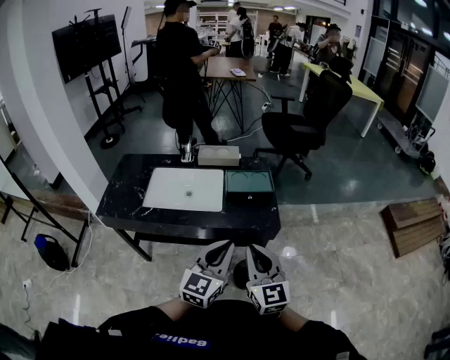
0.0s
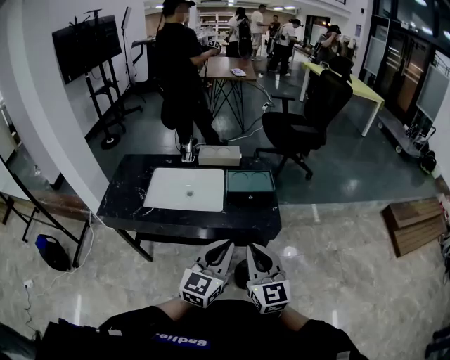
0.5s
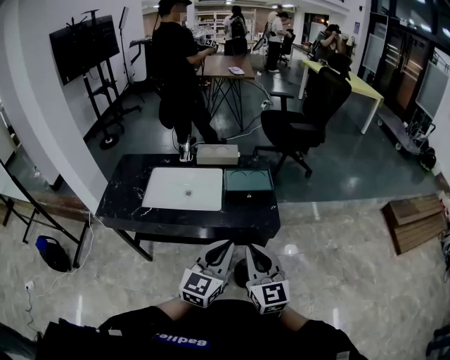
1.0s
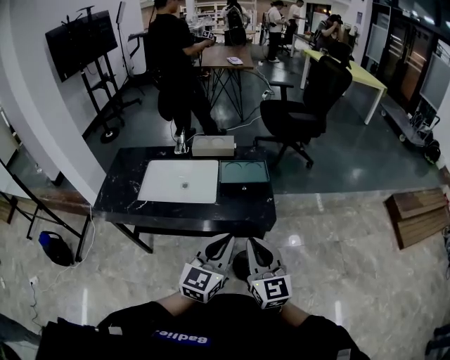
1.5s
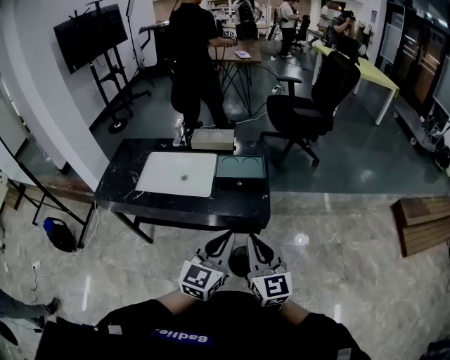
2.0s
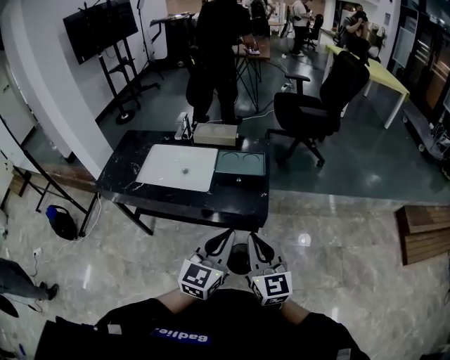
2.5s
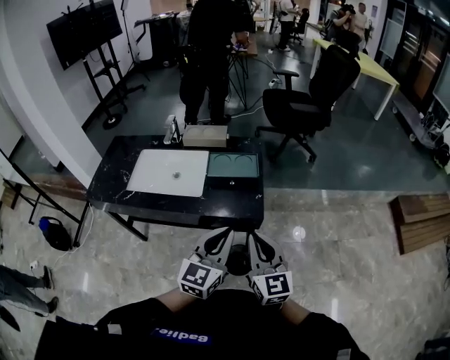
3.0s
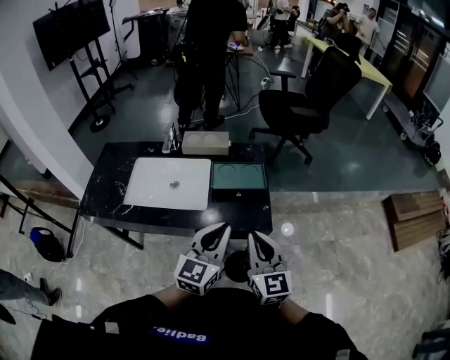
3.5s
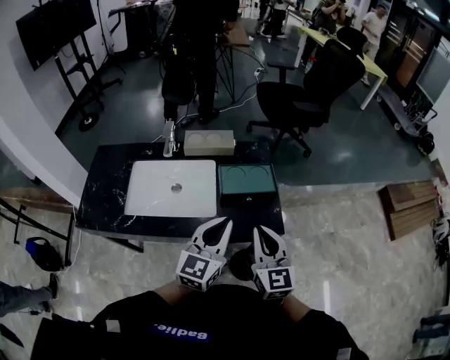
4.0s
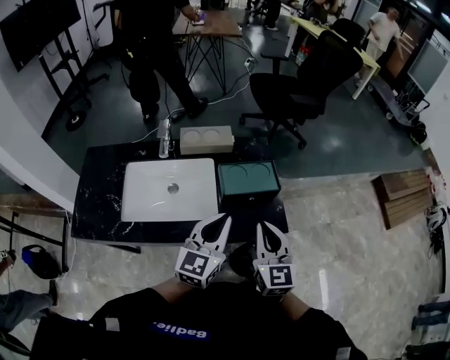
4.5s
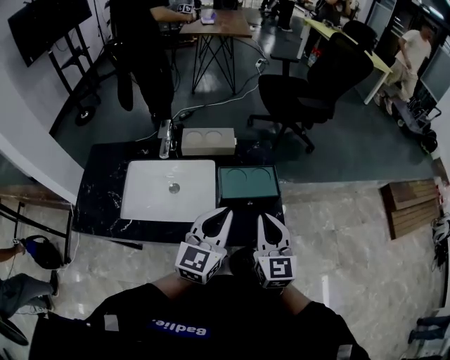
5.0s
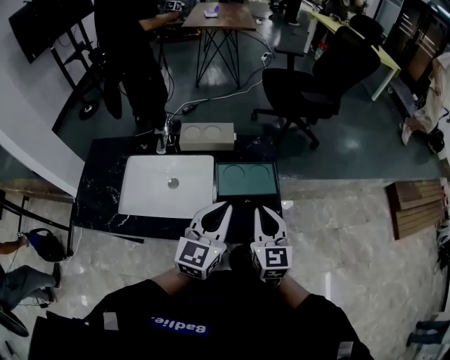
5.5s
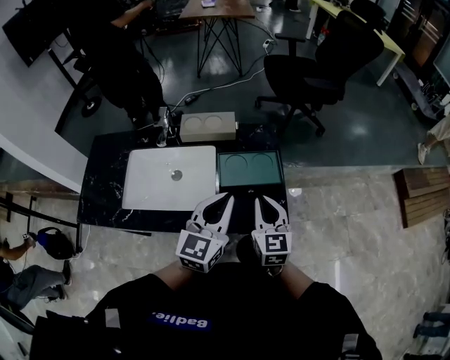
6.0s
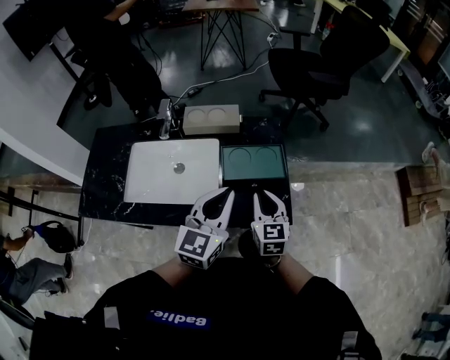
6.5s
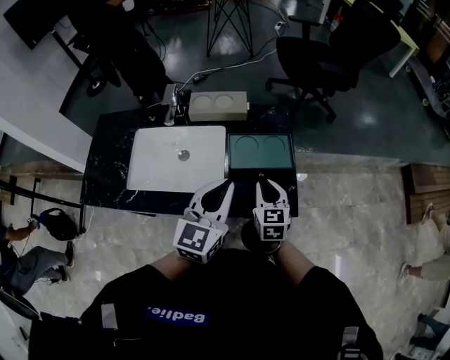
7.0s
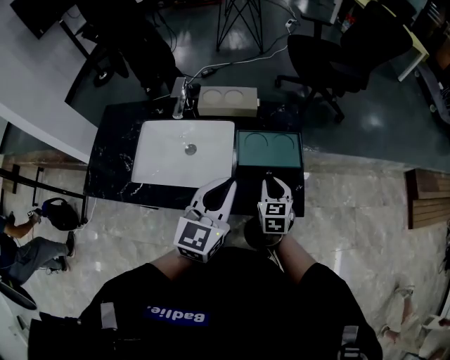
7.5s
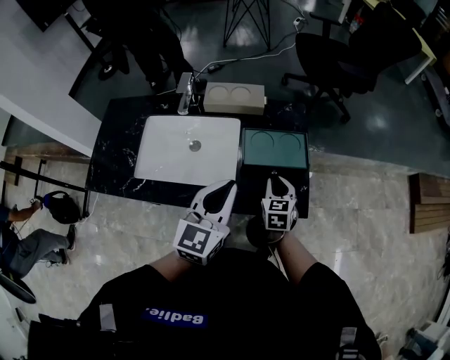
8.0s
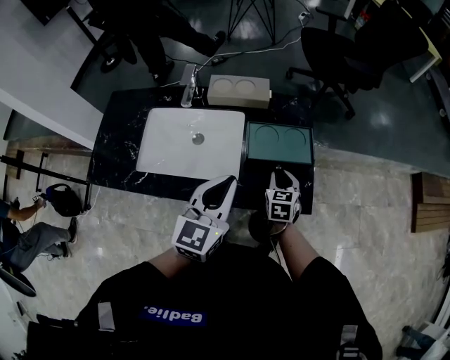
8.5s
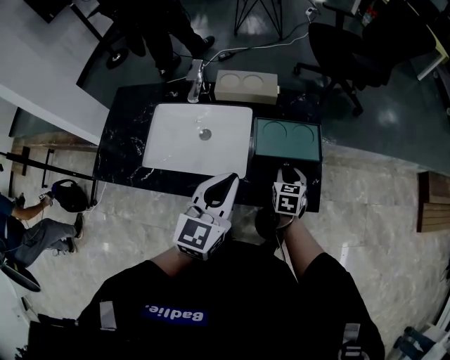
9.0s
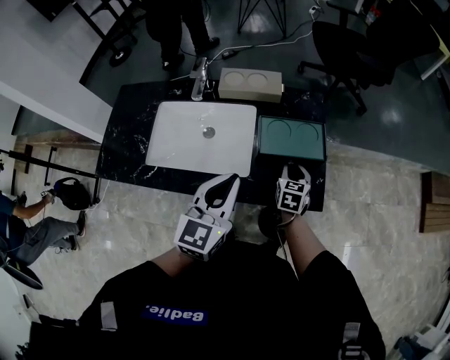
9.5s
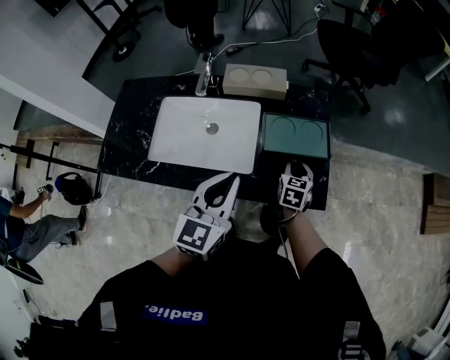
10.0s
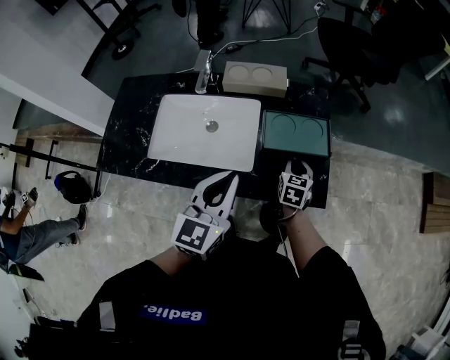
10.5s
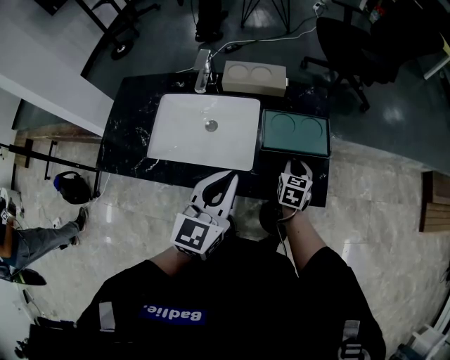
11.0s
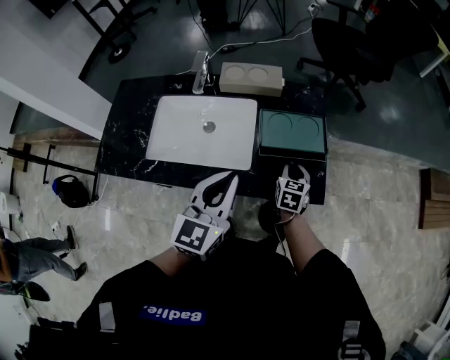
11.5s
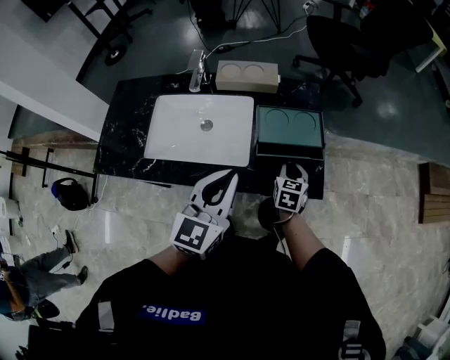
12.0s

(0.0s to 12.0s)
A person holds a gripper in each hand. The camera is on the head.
0.0s - 2.0s: Both grippers move to the right, some 10 cm.
2.0s - 4.0s: The grippers both shift forward and to the left by approximately 20 cm.
4.0s - 6.0s: The left gripper shifts roughly 10 cm forward; the right gripper shifts some 15 cm forward and downward.
6.0s - 8.0s: The right gripper travels downward by some 15 cm, and changes its angle by approximately 20 degrees; the left gripper moves to the left, approximately 5 cm.
8.0s - 12.0s: The grippers make only small movements.

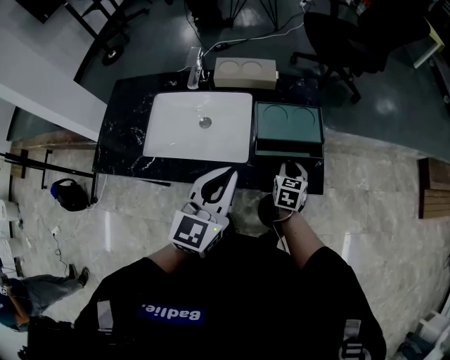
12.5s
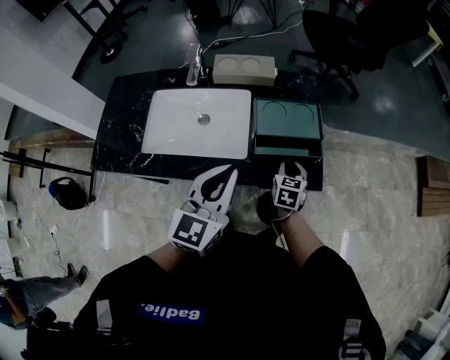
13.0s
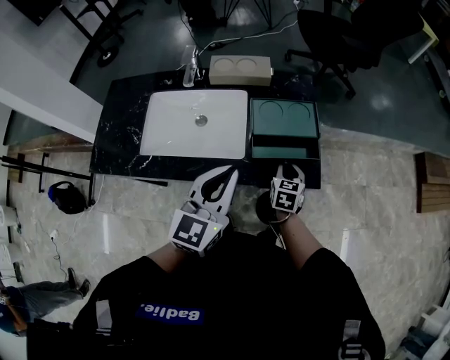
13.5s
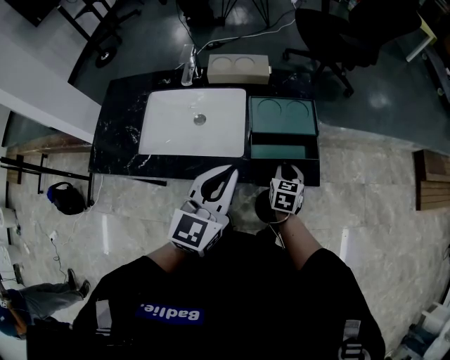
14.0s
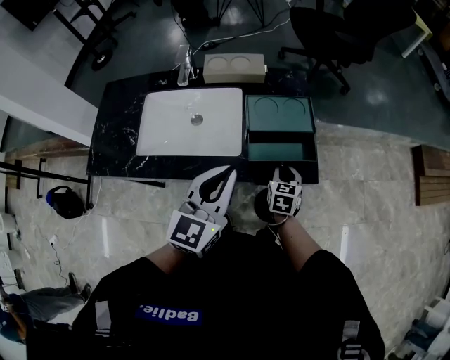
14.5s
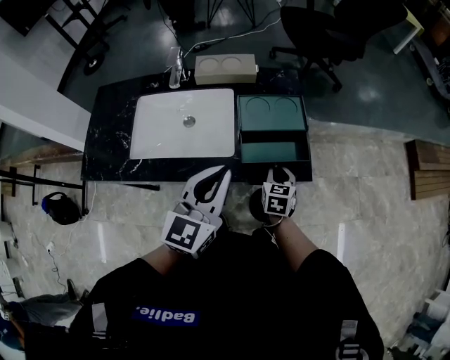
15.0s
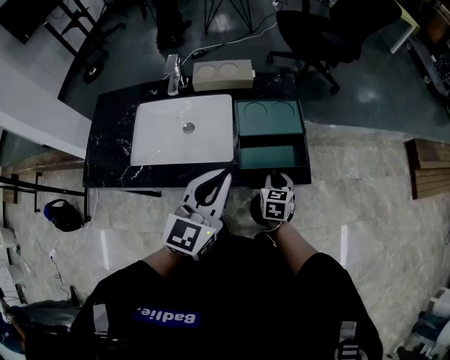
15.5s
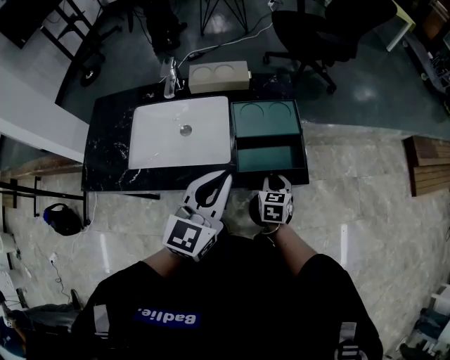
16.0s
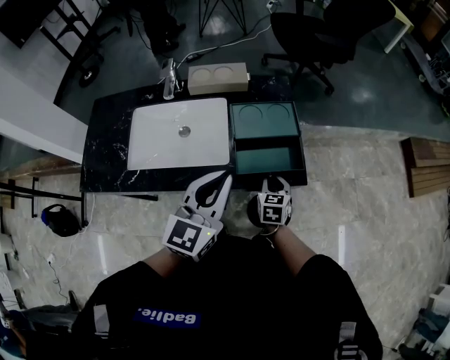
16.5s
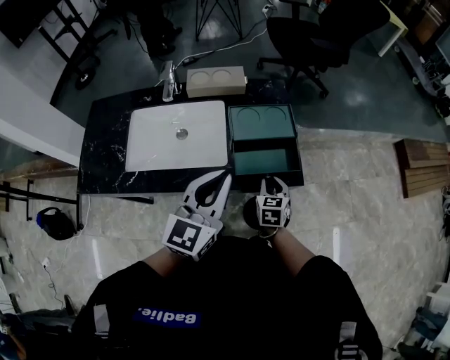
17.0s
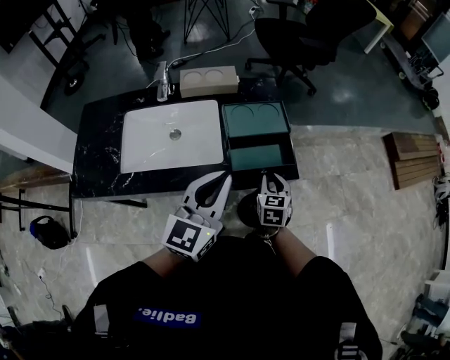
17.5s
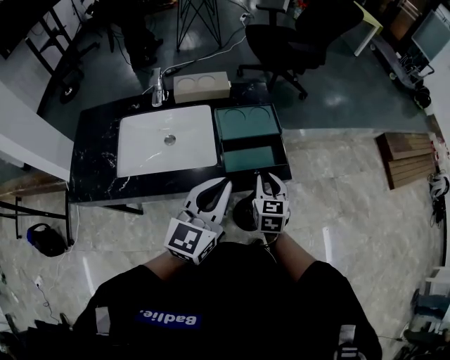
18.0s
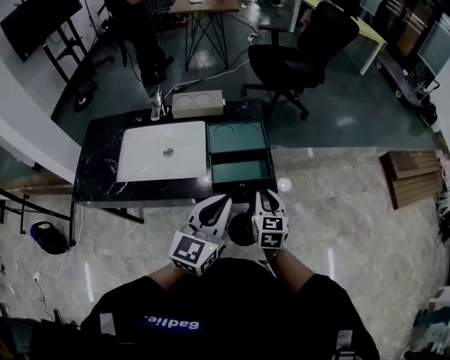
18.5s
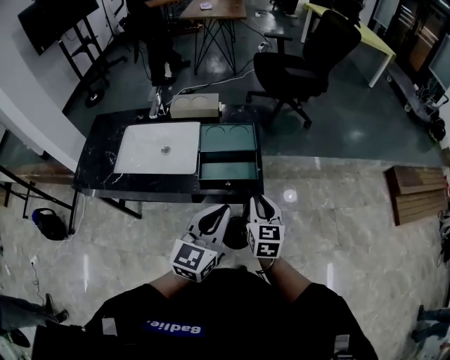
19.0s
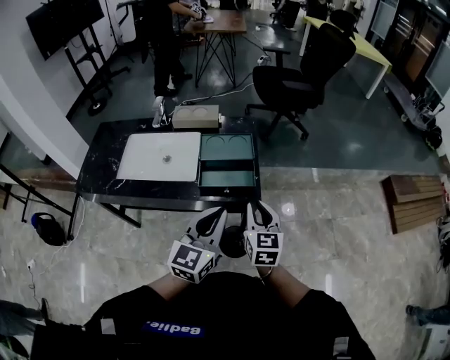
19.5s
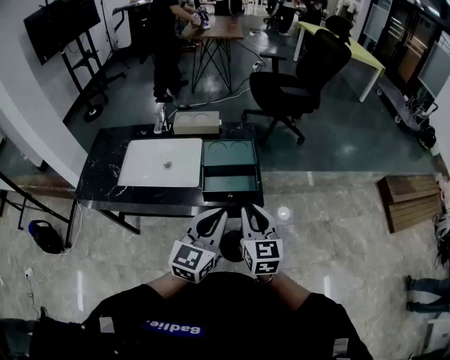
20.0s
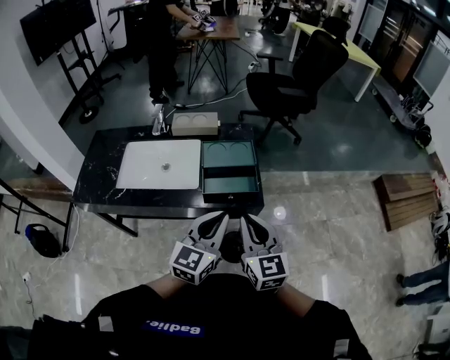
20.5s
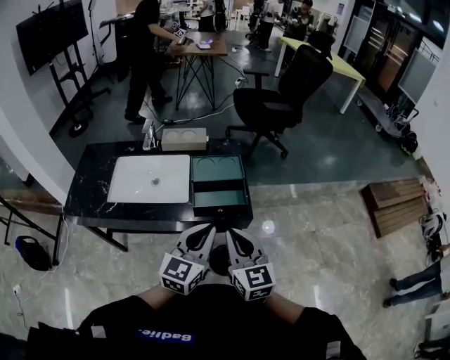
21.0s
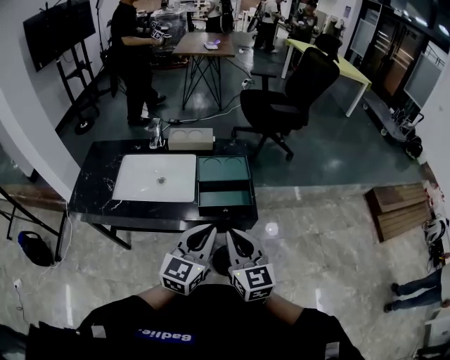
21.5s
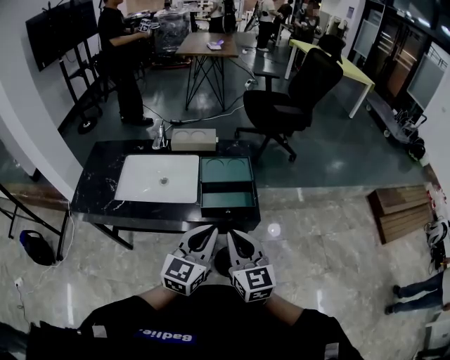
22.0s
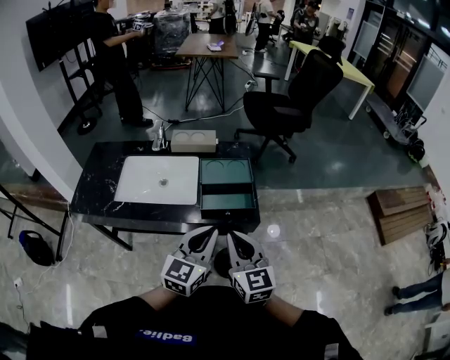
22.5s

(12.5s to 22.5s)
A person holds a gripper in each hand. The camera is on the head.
12.5s - 14.5s: The grippers stay close to where they were, moving slightly.
14.5s - 16.5s: The grippers make only small movements.
16.5s - 18.5s: The right gripper goes some 15 cm upward and to the right. Meanwhile the left gripper moves to the right, about 10 cm.
18.5s - 20.5s: The left gripper changes place by roughly 5 cm. Meanwhile the right gripper moves upward and backward, some 20 cm, and swivels about 20 degrees.
20.5s - 22.5s: The grippers stay close to where they were, moving slightly.

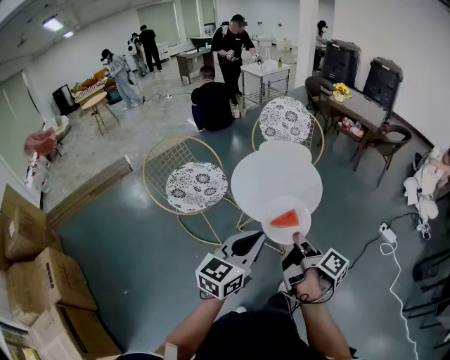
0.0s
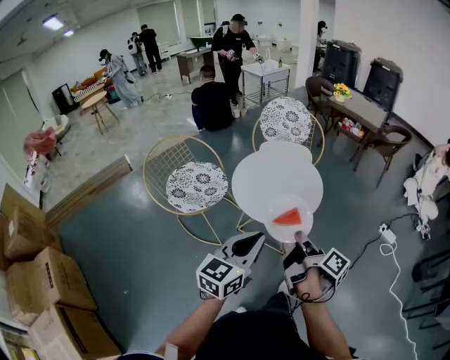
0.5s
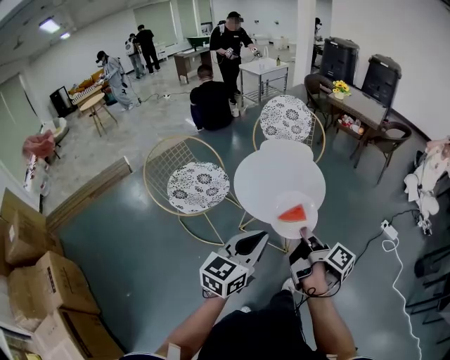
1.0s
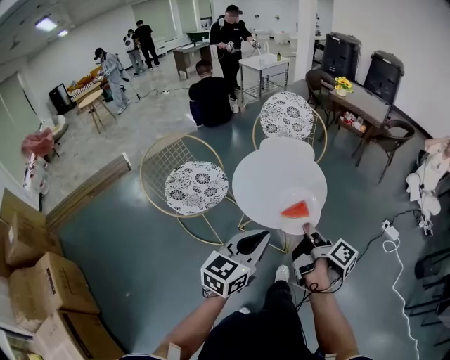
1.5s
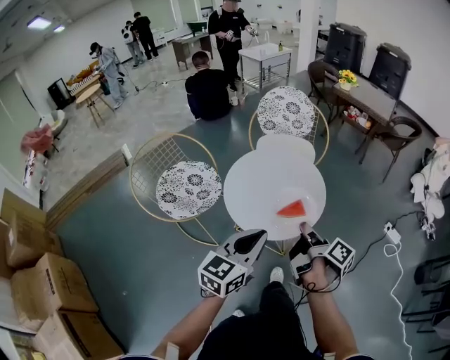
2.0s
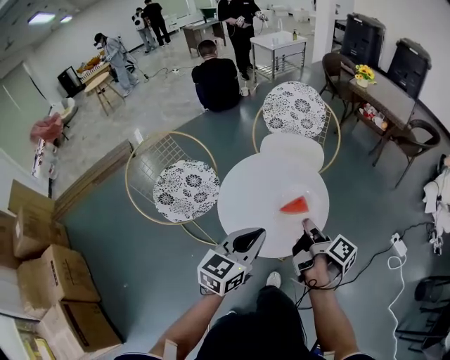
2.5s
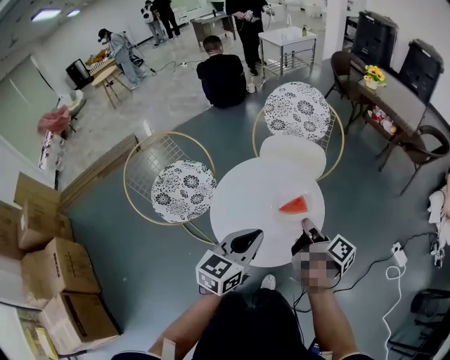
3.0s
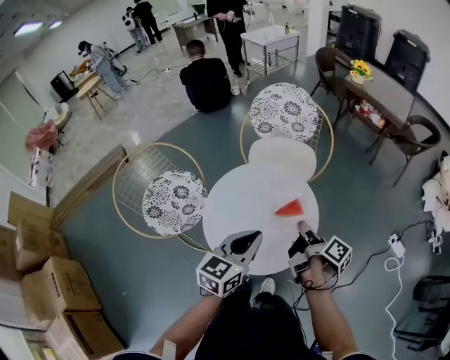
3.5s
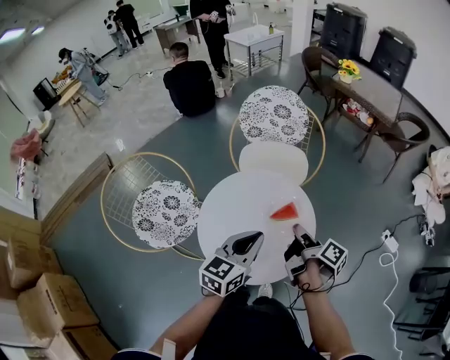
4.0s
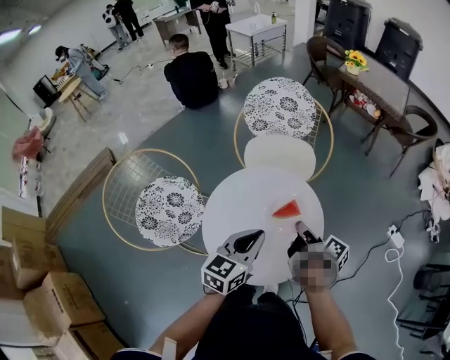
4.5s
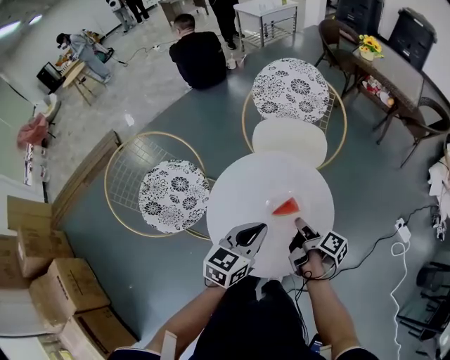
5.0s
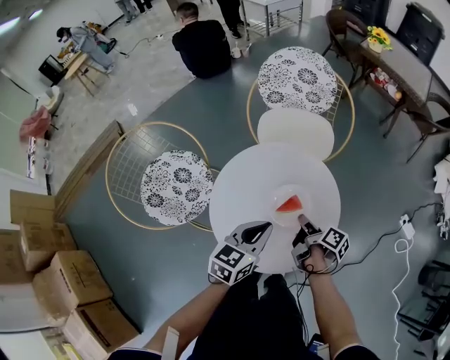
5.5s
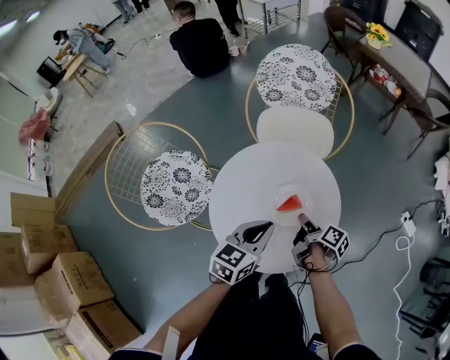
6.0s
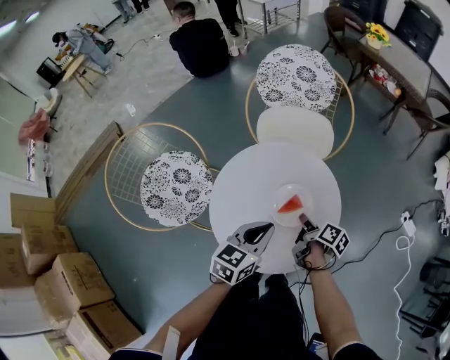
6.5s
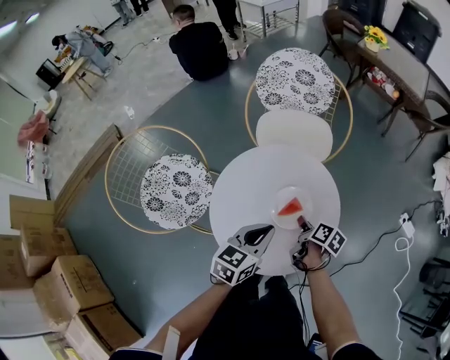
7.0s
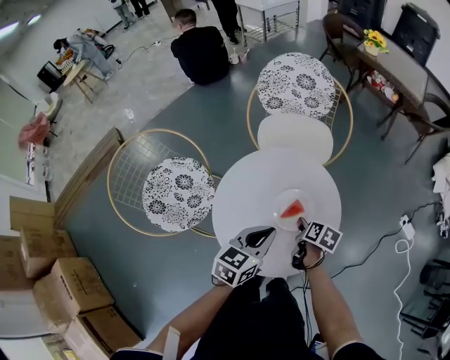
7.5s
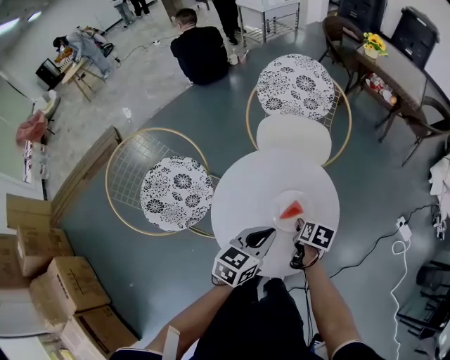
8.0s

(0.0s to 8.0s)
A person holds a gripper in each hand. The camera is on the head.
0.0s - 2.0s: The two grippers go some 15 cm forward.
2.0s - 4.0s: Both grippers move forward, approximately 20 cm.
4.0s - 6.0s: The left gripper moves downward, roughly 10 cm. Meanwhile the right gripper travels downward by roughly 15 cm.
6.0s - 8.0s: The right gripper swivels some 50 degrees, and opens up.
